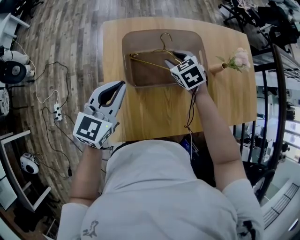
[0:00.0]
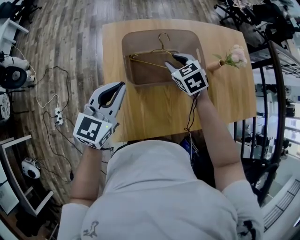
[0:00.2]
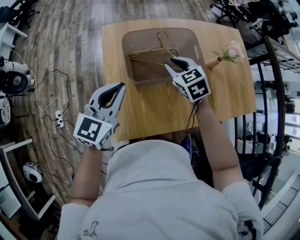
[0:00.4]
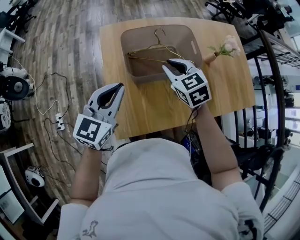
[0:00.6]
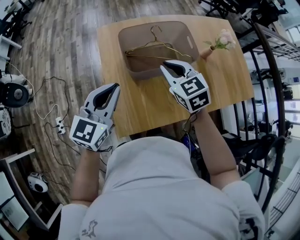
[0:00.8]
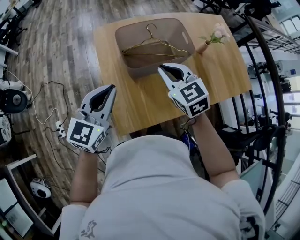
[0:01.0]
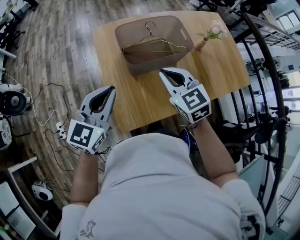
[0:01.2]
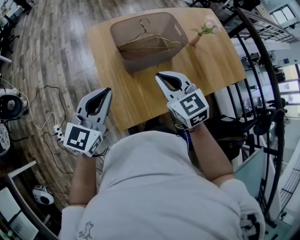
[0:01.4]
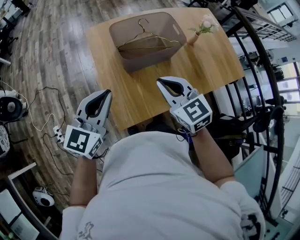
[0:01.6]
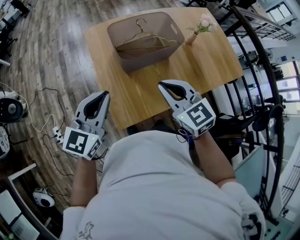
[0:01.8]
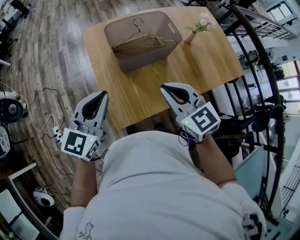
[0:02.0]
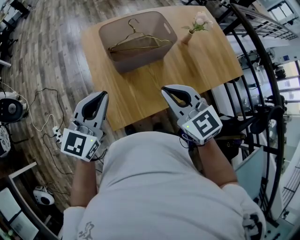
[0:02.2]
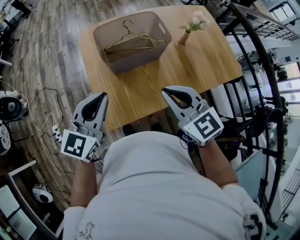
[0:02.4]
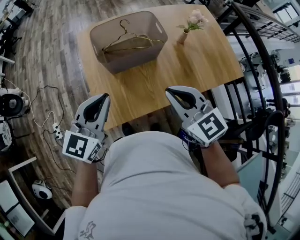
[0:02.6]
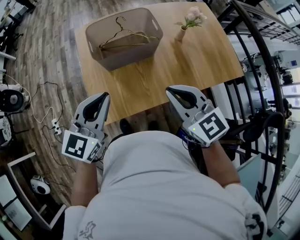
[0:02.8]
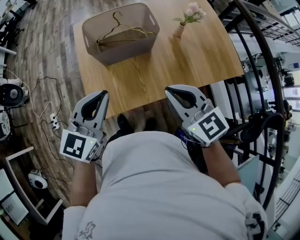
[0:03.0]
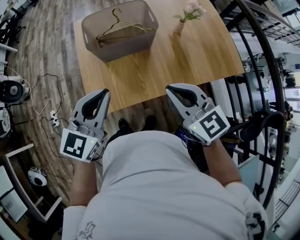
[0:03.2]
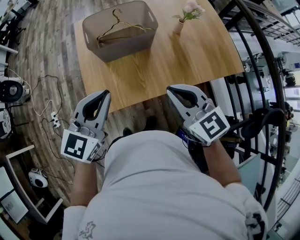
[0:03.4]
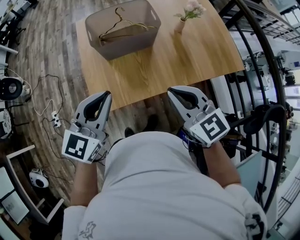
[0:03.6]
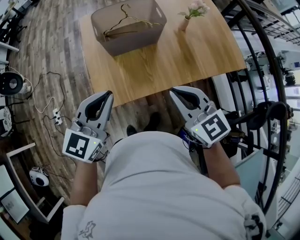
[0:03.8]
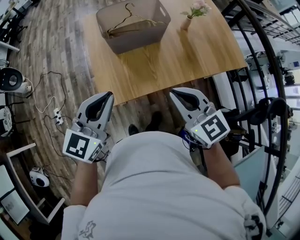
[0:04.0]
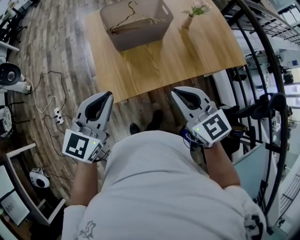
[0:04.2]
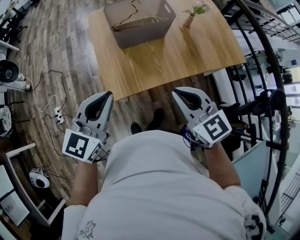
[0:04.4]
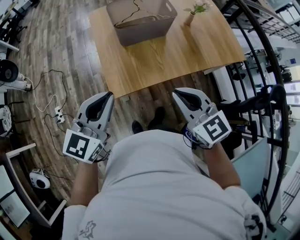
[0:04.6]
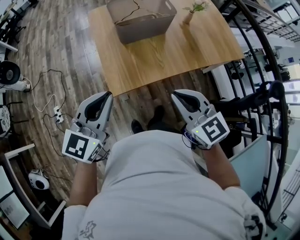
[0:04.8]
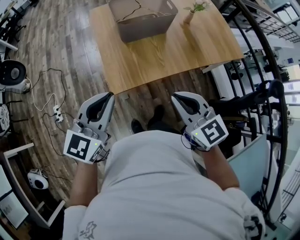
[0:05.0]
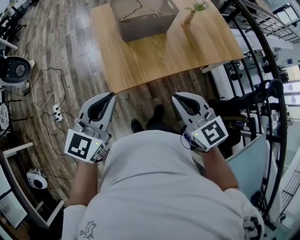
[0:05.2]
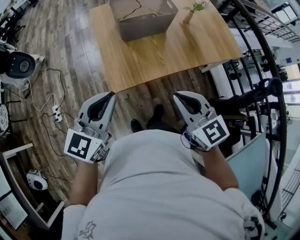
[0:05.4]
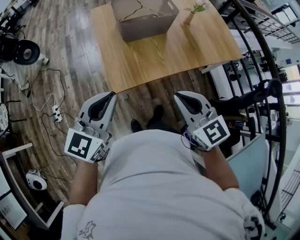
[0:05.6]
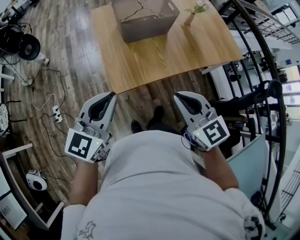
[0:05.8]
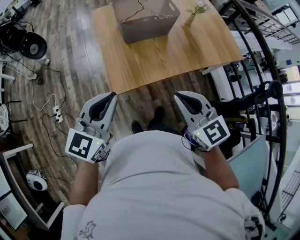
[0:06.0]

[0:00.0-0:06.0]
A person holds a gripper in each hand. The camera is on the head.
0.0 to 1.6 s: The right gripper goes roughly 30 cm backward and upward, turns by some 30 degrees, and closes; the left gripper shifts approximately 15 cm backward.
1.6 to 3.0 s: The two grippers go approximately 20 cm to the right.
3.0 to 4.4 s: The grippers both shift backward and to the left by some 15 cm.
4.4 to 6.0 s: Both grippers move backward, roughly 5 cm.

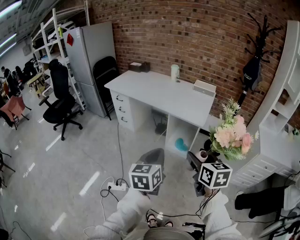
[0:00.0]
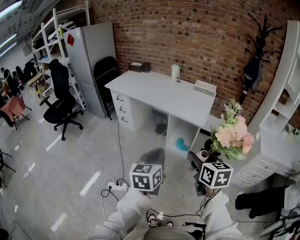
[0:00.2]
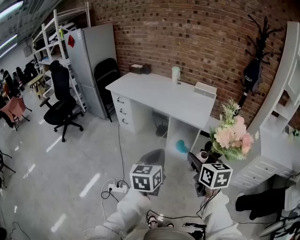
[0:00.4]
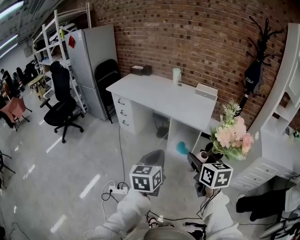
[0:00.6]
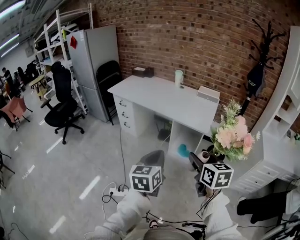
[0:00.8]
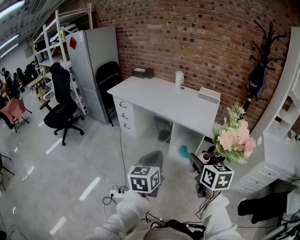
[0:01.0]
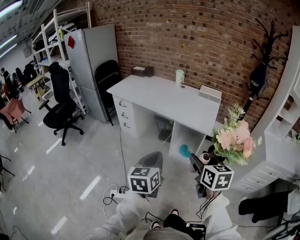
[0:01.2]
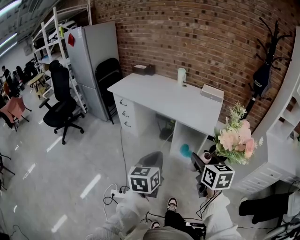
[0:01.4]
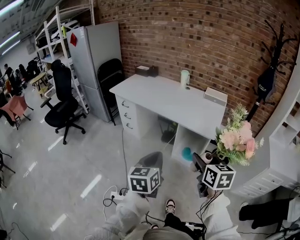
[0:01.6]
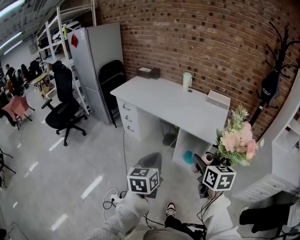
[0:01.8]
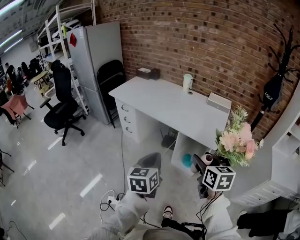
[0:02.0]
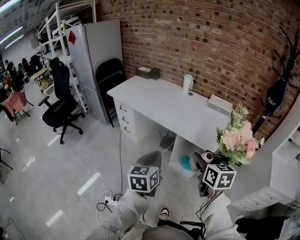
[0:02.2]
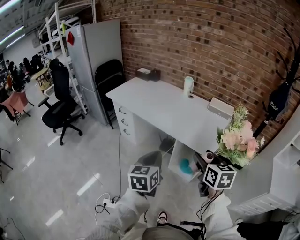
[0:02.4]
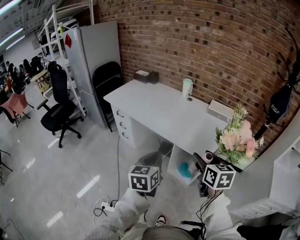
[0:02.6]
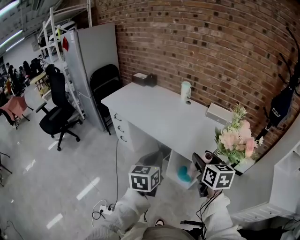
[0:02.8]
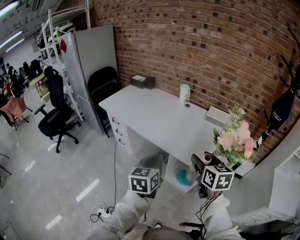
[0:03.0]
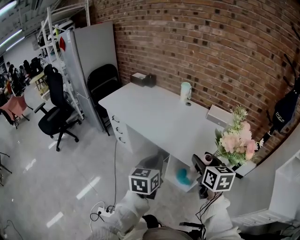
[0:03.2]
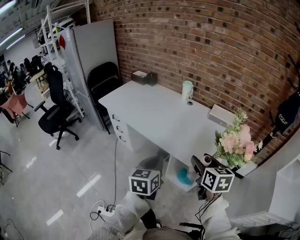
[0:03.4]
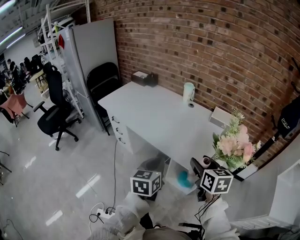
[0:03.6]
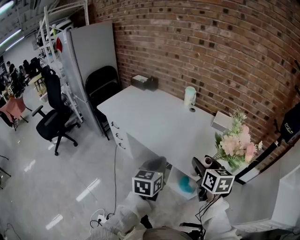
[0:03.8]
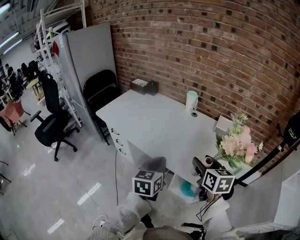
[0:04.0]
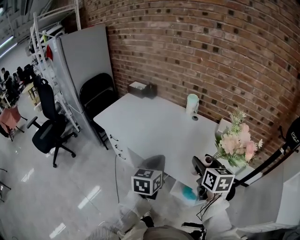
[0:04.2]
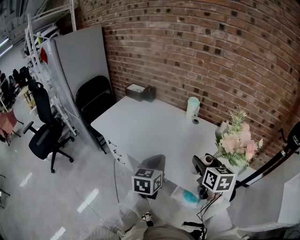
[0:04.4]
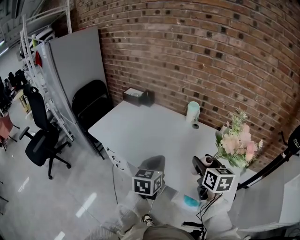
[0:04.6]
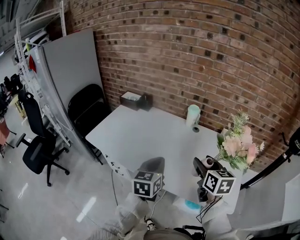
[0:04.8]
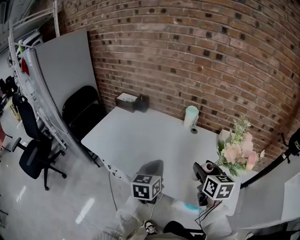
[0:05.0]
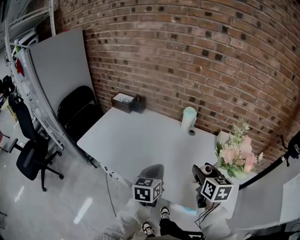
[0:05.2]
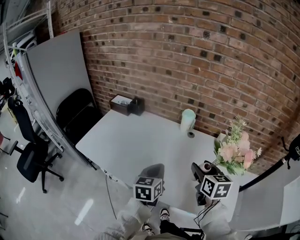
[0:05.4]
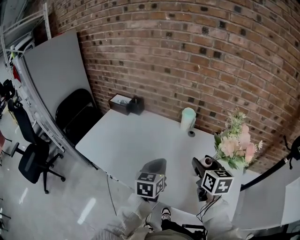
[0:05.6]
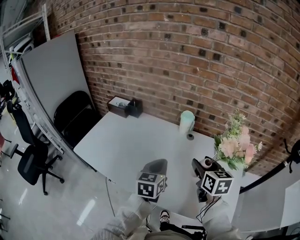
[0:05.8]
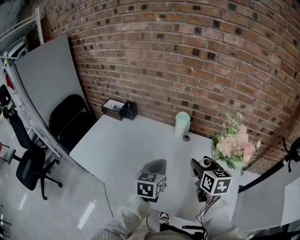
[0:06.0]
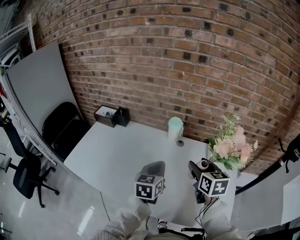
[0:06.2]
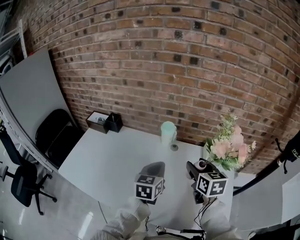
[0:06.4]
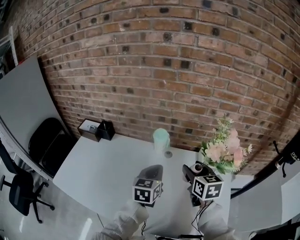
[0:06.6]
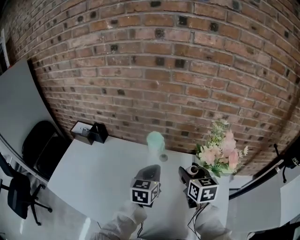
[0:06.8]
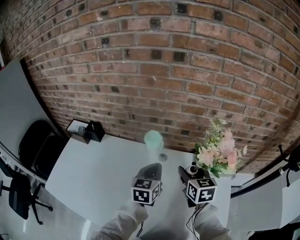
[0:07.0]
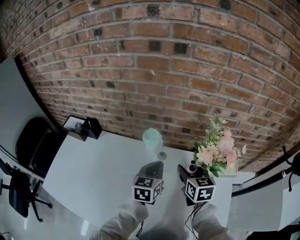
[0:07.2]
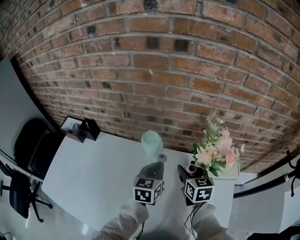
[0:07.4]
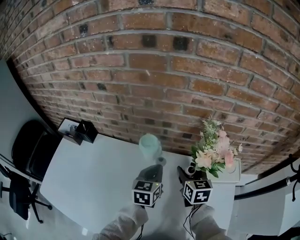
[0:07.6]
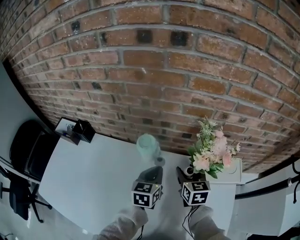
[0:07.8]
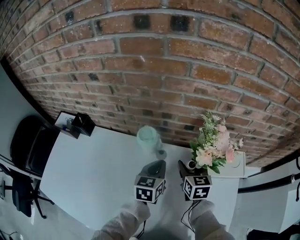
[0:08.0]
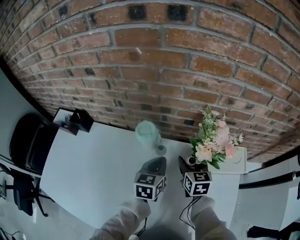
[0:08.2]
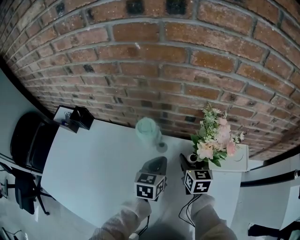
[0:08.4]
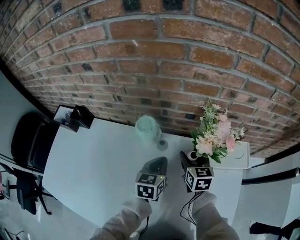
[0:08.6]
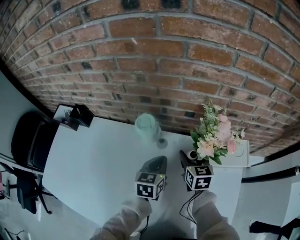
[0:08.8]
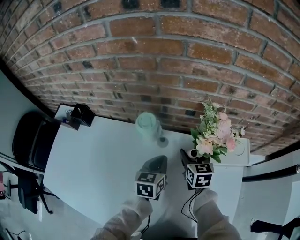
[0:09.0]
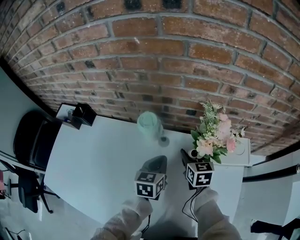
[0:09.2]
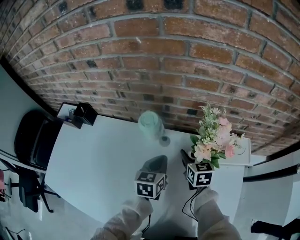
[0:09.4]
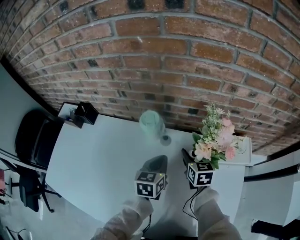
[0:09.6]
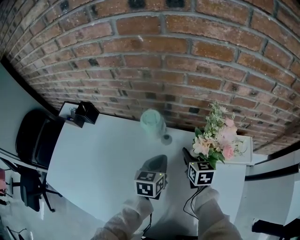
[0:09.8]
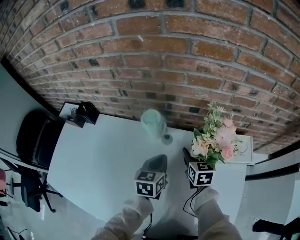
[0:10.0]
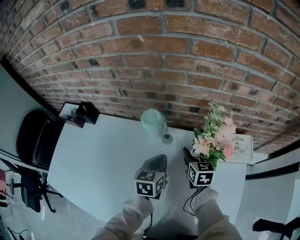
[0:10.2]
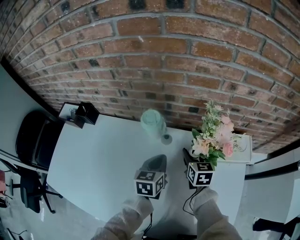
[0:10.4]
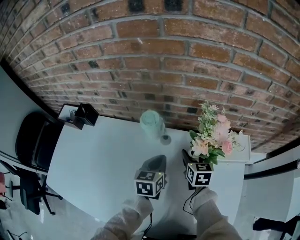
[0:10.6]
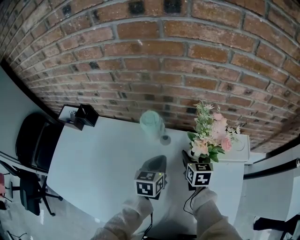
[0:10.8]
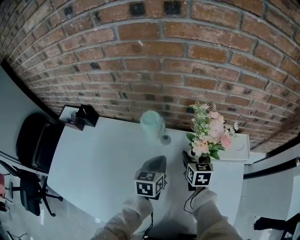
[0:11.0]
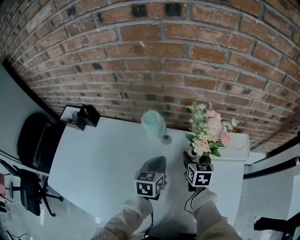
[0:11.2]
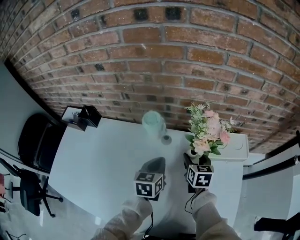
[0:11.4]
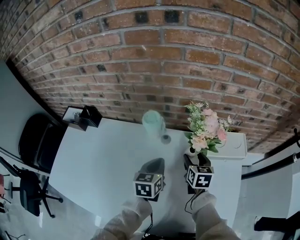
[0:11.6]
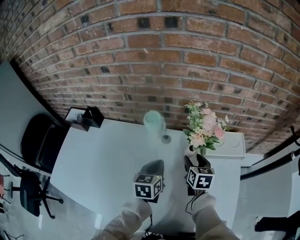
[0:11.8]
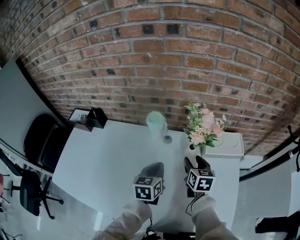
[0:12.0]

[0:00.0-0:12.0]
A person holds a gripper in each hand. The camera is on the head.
0.0 to 1.6 s: The left gripper travels forward and to the left by some 10 cm. Meanwhile the right gripper goes some 10 cm forward.
1.6 to 3.0 s: Both grippers travel together forward, some 25 cm.
3.0 to 4.4 s: The grippers both shift forward by approximately 25 cm.
4.4 to 6.0 s: The two grippers go some 20 cm forward.
6.0 to 7.6 s: The left gripper goes about 30 cm forward and to the right. The right gripper heads forward and downward, covering some 25 cm.
7.6 to 9.0 s: The two grippers go roughly 5 cm downward.
9.0 to 10.4 s: The grippers move only a little.
10.4 to 12.0 s: Both grippers travel together backward, about 10 cm.

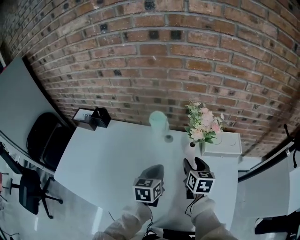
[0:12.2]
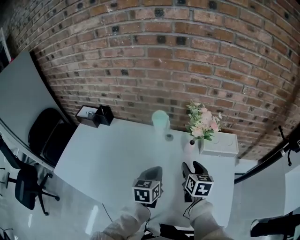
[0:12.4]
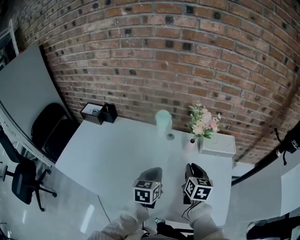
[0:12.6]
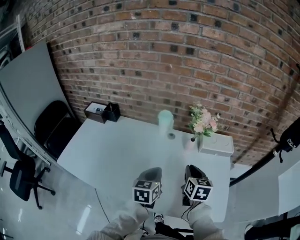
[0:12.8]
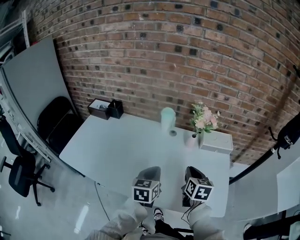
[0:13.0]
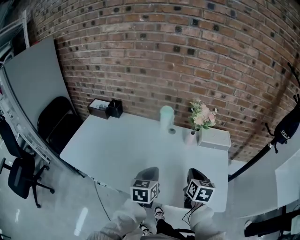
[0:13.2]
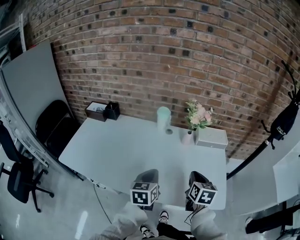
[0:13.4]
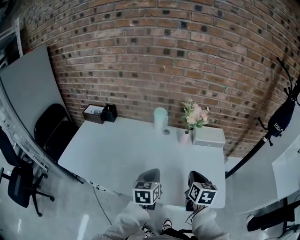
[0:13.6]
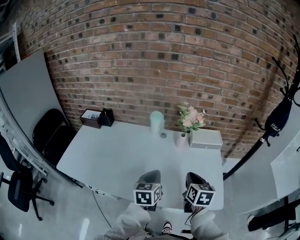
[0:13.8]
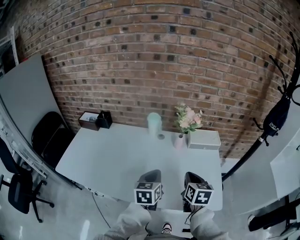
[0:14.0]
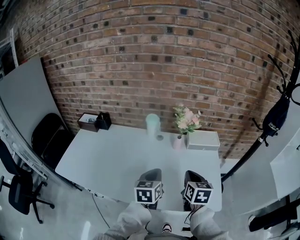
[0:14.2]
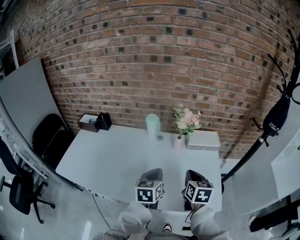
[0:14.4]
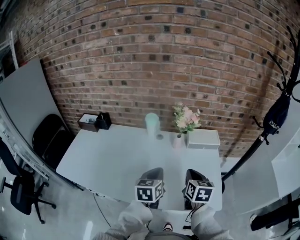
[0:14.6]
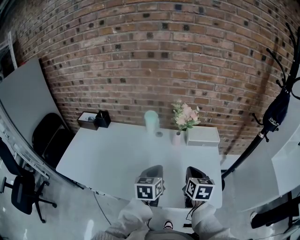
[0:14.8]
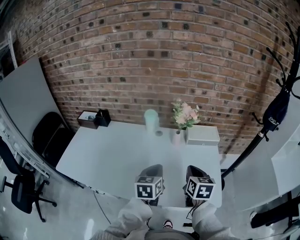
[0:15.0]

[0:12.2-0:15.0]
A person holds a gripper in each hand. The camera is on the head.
12.2 to 13.6 s: The two grippers go some 20 cm backward. The right gripper closes.
13.6 to 15.0 s: The left gripper goes approximately 5 cm to the right.

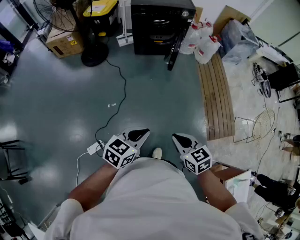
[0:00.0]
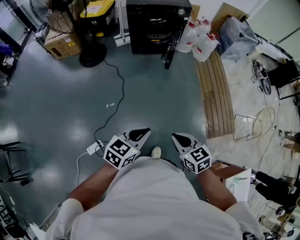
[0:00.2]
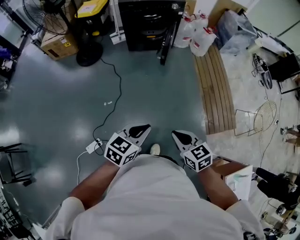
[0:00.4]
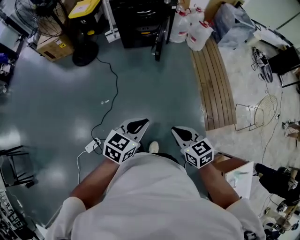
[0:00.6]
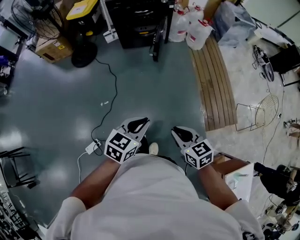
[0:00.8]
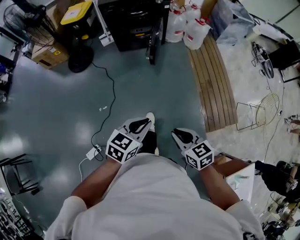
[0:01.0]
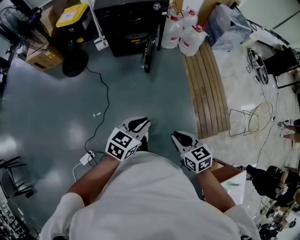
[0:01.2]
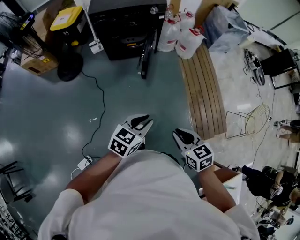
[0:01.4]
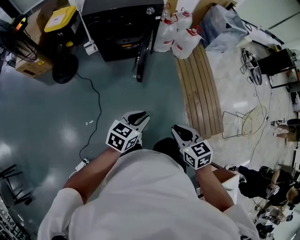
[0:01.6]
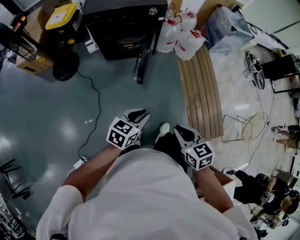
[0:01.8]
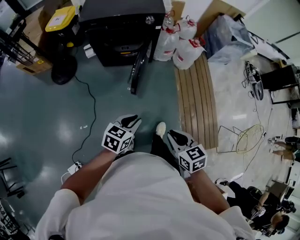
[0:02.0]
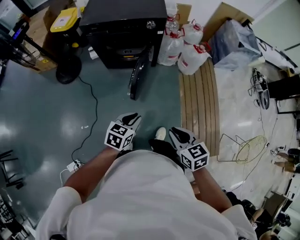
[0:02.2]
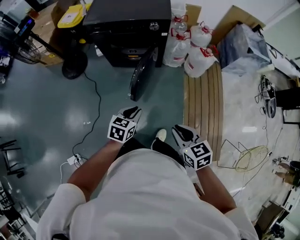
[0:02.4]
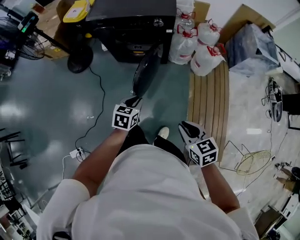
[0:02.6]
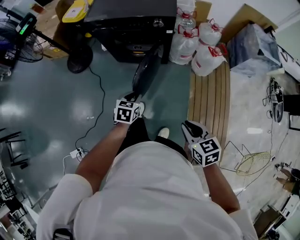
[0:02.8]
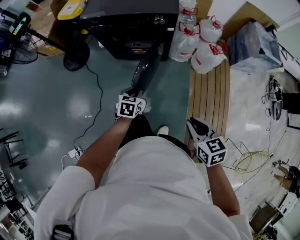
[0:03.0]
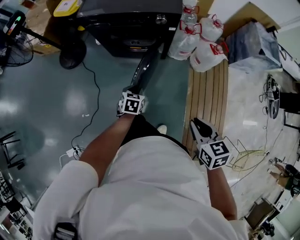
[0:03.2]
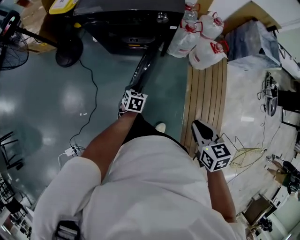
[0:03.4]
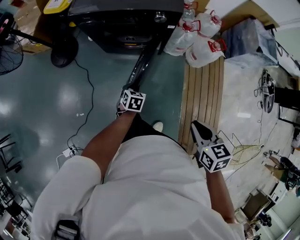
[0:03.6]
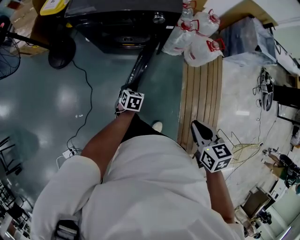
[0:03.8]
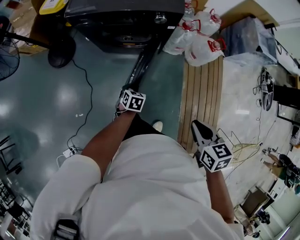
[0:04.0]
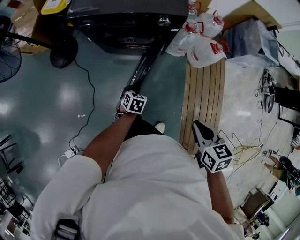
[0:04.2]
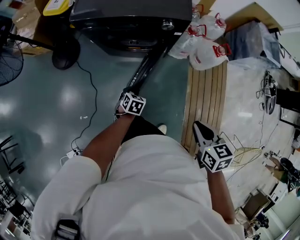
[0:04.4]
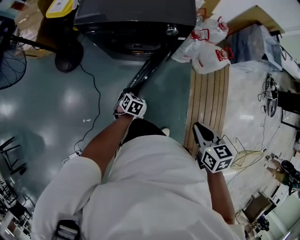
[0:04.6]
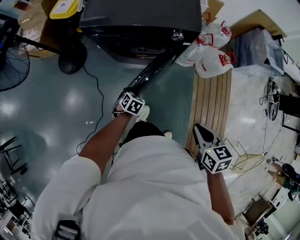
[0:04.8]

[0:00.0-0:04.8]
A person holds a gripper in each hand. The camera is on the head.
0.0 to 1.6 s: The two grippers go some 35 cm forward and to the right.
1.6 to 3.2 s: The right gripper changes place by roughly 35 cm; the left gripper changes place by approximately 40 cm, and changes its angle by some 40 degrees.
3.2 to 4.8 s: The right gripper heads forward and to the left, covering approximately 10 cm. The left gripper heads forward, to the left and downward, covering approximately 15 cm, and swivels some 20 degrees.
